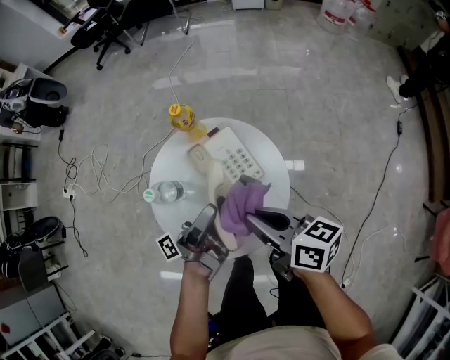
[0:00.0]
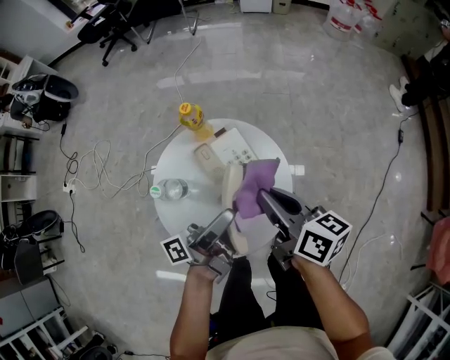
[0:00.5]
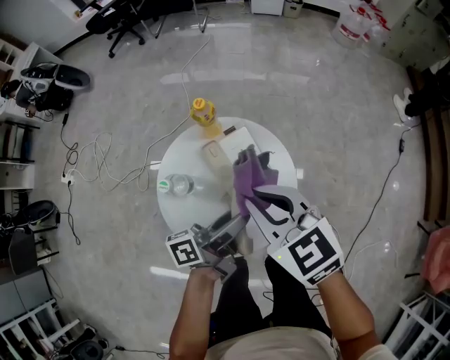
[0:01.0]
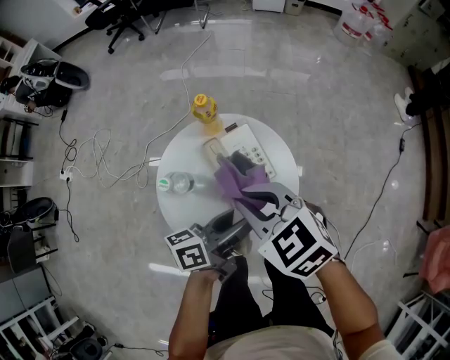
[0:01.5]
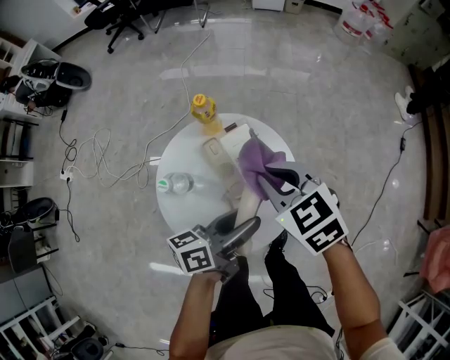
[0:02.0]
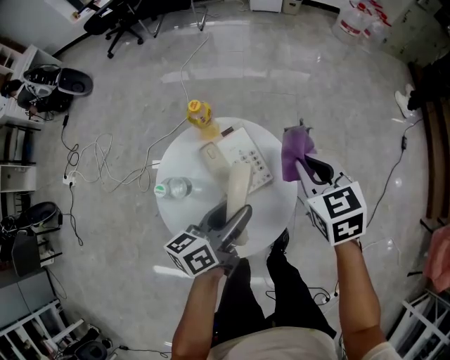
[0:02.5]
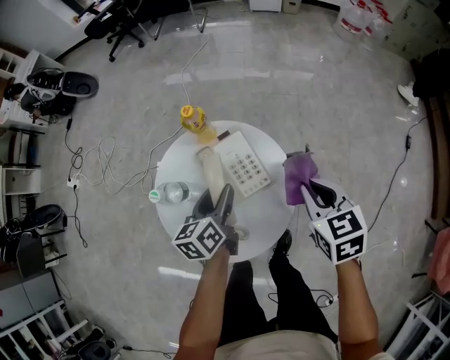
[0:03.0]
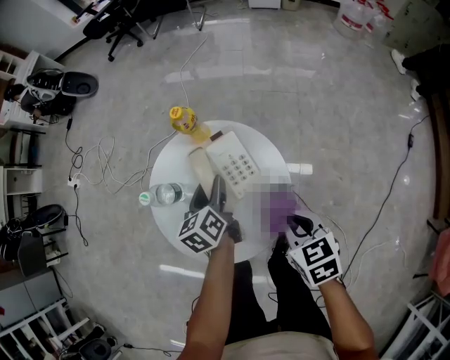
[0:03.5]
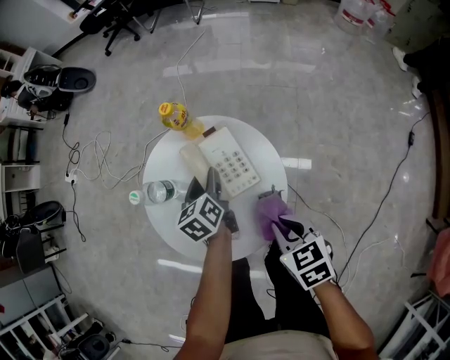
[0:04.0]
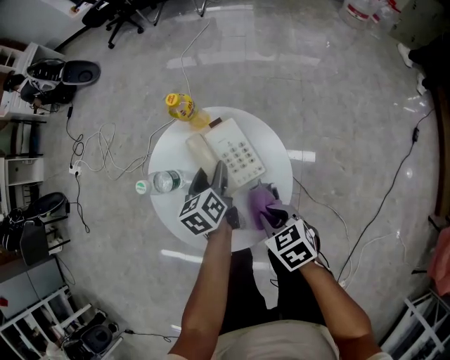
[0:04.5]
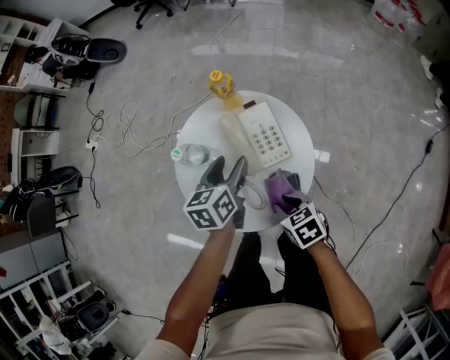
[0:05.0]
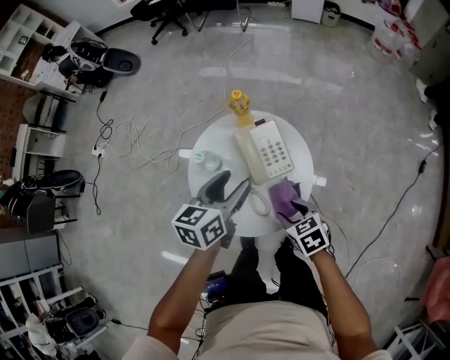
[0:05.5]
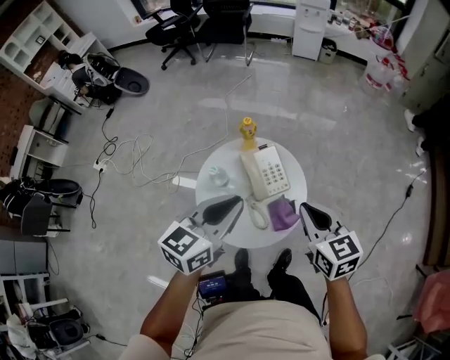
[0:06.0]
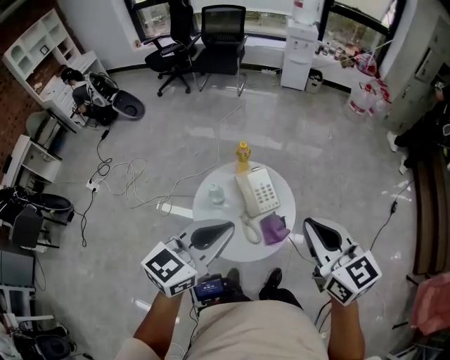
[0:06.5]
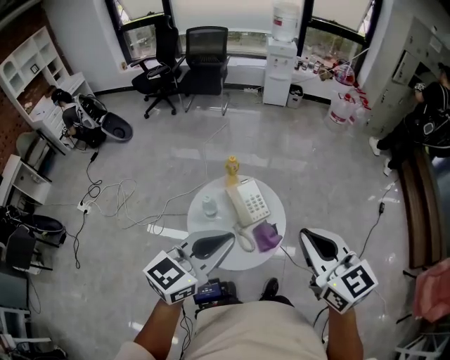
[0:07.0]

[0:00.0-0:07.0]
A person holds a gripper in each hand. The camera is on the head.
0.0 to 2.0 s: The left gripper ends up roughly 5 cm from where it was, and tips its fingers downward by some 30 degrees; the right gripper shifts approximately 10 cm forward, goes to the left and returns, about 5 cm each way, and rotates around the line of its fingers by about 50 degrees, counterclockwise from behind.
2.0 to 3.5 s: The right gripper changes place by roughly 15 cm, while the left gripper changes place by approximately 15 cm, and changes its angle by some 50 degrees.
3.5 to 5.0 s: The left gripper changes place by roughly 5 cm. Meanwhile the right gripper travels to the left and downward by about 10 cm.
5.0 to 7.0 s: The two grippers go approximately 40 cm upward. The right gripper tilts its fingers about 40 degrees upward, and opens and closes again. Meanwhile the left gripper changes its angle by about 50 degrees, and closes.

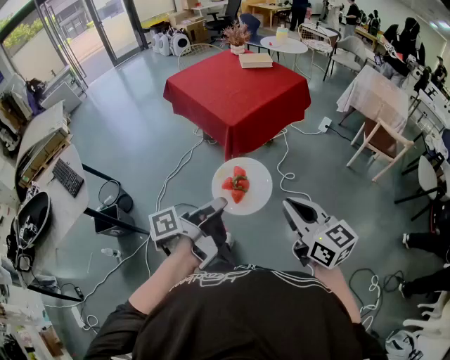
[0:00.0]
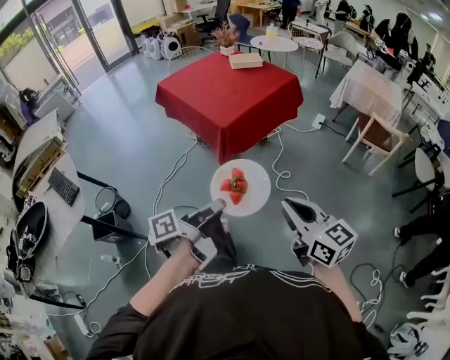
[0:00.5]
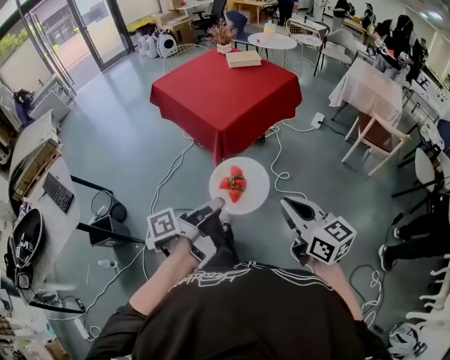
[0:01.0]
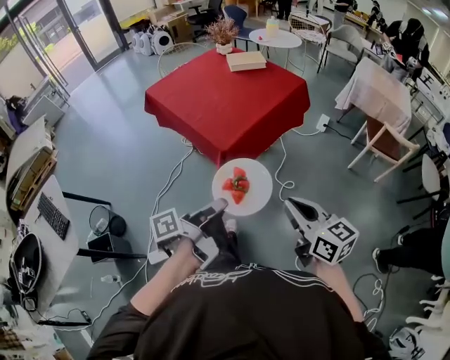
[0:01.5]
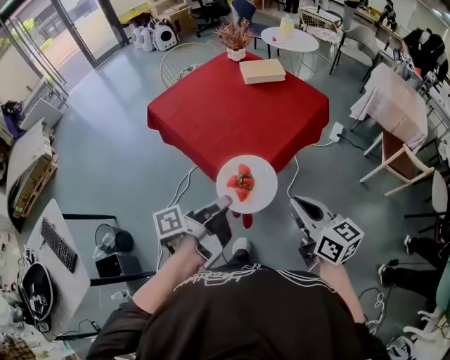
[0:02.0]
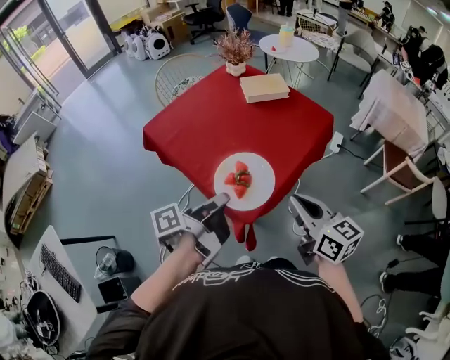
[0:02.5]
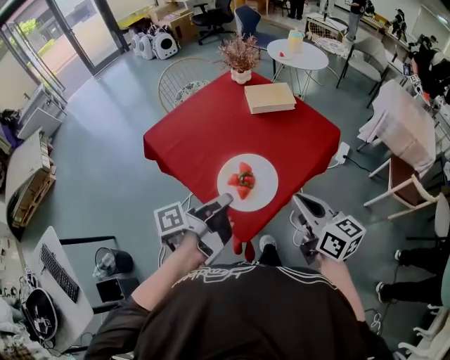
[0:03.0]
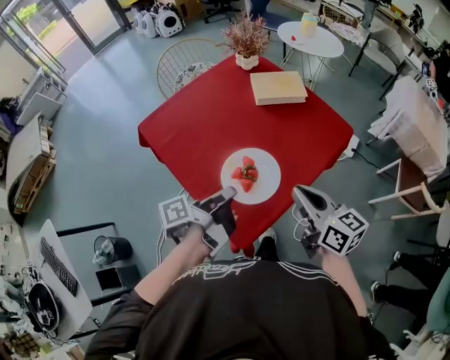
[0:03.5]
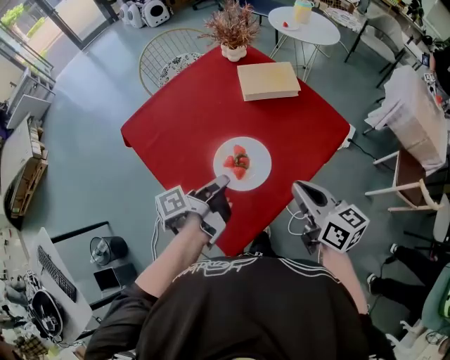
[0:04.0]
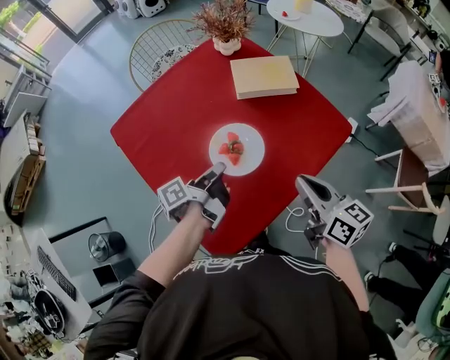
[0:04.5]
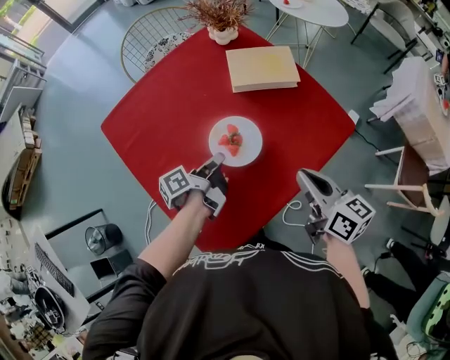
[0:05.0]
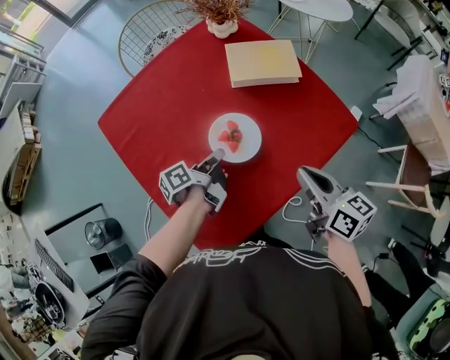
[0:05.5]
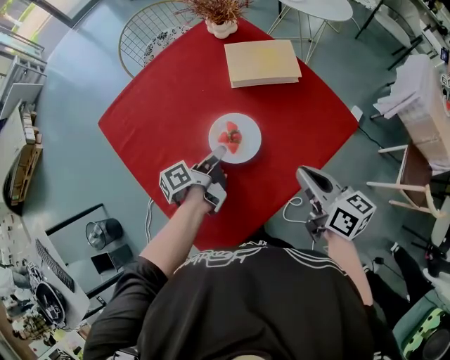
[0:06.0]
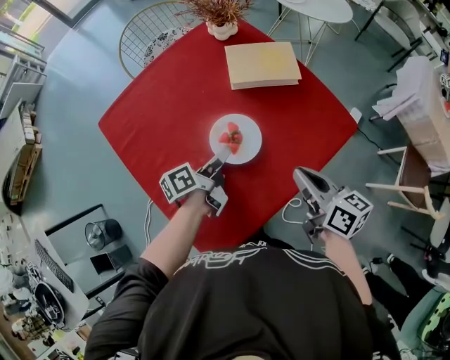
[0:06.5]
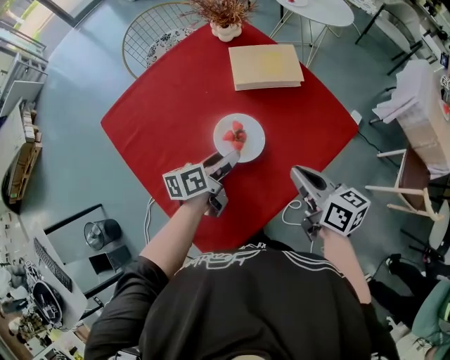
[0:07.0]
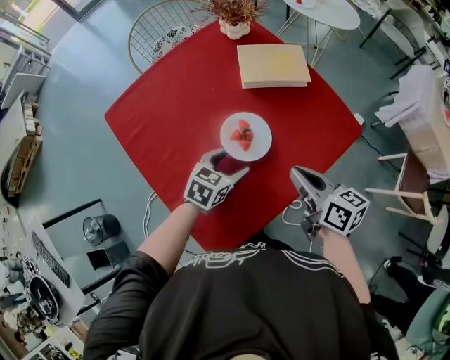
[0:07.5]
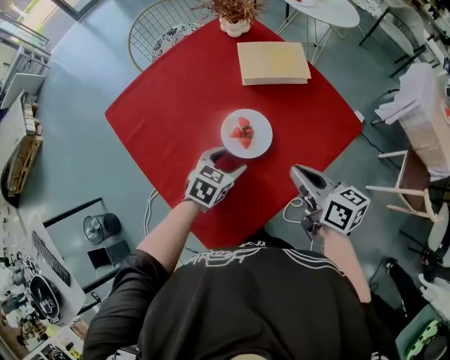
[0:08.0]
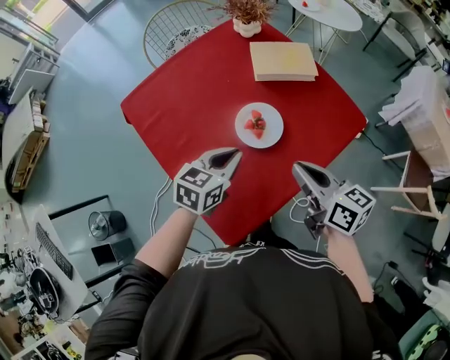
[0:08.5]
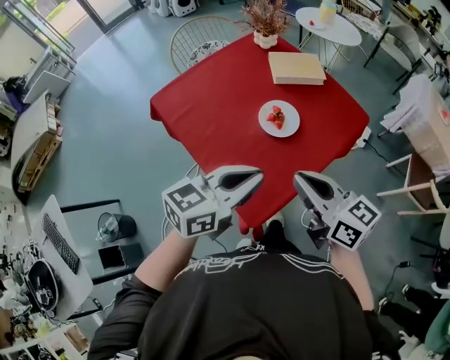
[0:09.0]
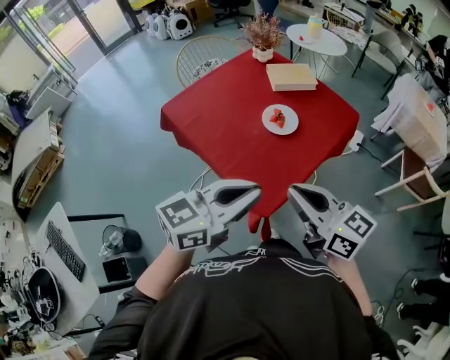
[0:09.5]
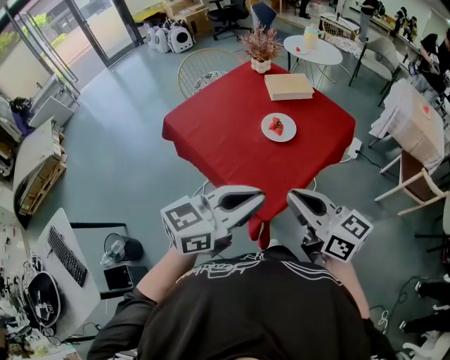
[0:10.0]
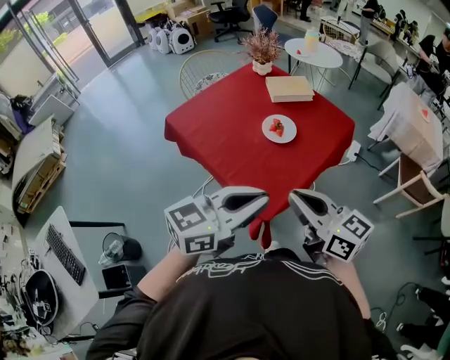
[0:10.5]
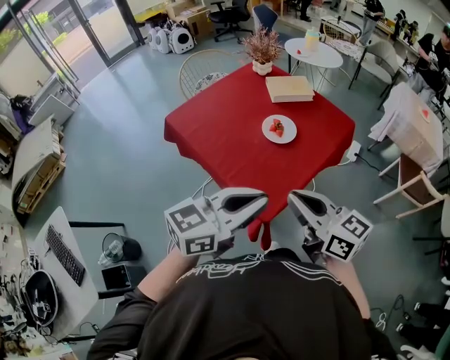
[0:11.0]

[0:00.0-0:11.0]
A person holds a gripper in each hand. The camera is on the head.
0.0 to 2.0 s: The grippers both shift forward by approximately 40 cm.
2.0 to 3.5 s: The grippers both shift forward by about 25 cm.
3.5 to 5.5 s: The left gripper shifts some 25 cm forward and downward; the right gripper goes roughly 20 cm forward, to the right and downward.
5.5 to 7.5 s: The left gripper rolls clockwise, seen from behind, by approximately 80 degrees, and opens its fingers.
7.5 to 9.0 s: The right gripper travels backward, upward and to the left by some 25 cm, and changes its angle by some 20 degrees, while the left gripper travels upward and backward by about 30 cm, points its fingers approximately 30 degrees further upward, and closes its fingers.
9.0 to 11.0 s: Both grippers move backward, about 15 cm.

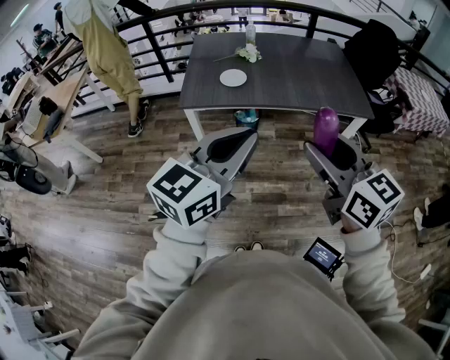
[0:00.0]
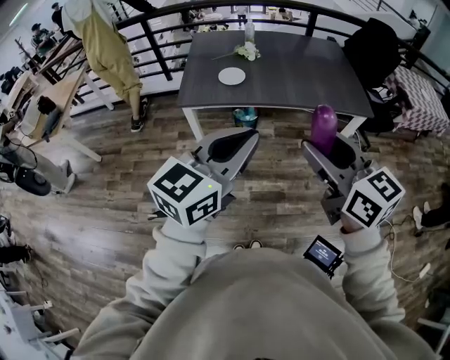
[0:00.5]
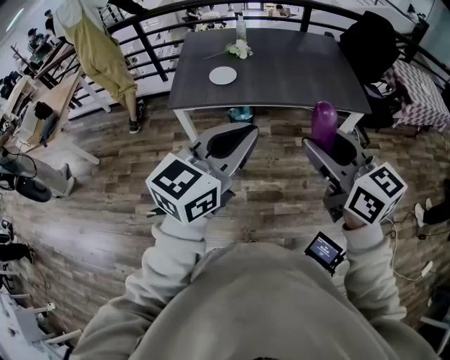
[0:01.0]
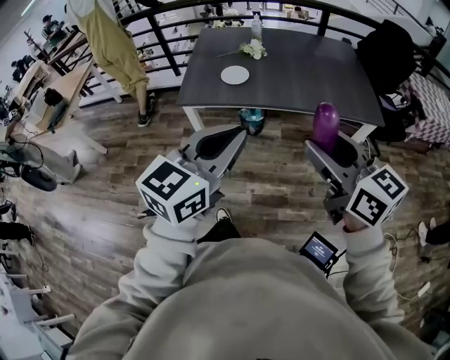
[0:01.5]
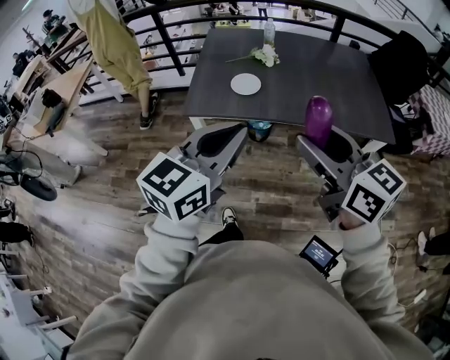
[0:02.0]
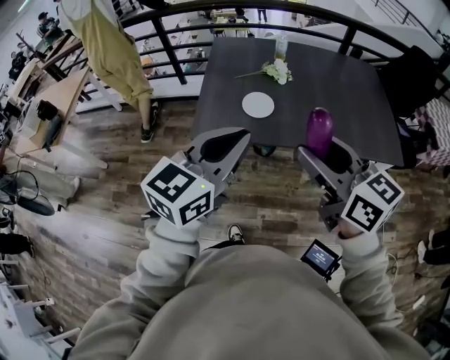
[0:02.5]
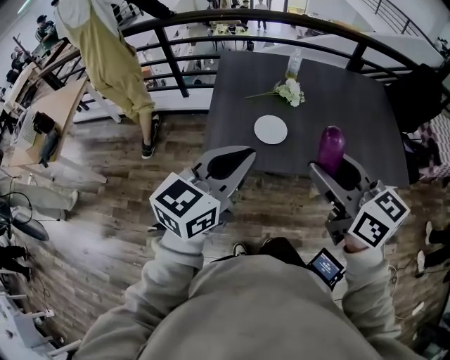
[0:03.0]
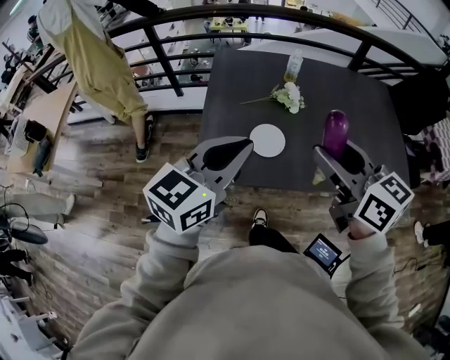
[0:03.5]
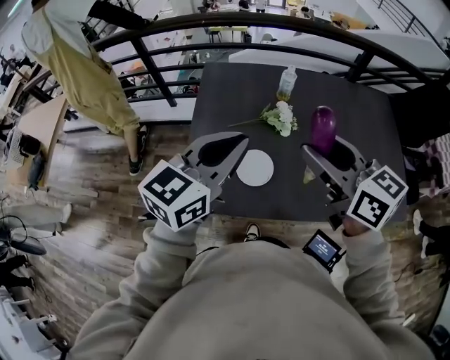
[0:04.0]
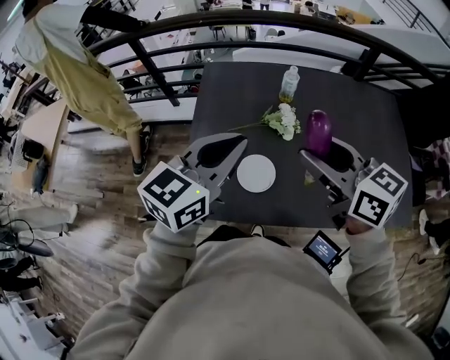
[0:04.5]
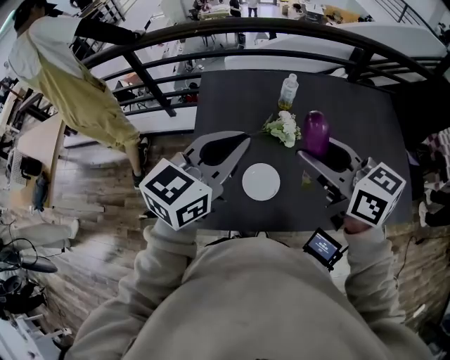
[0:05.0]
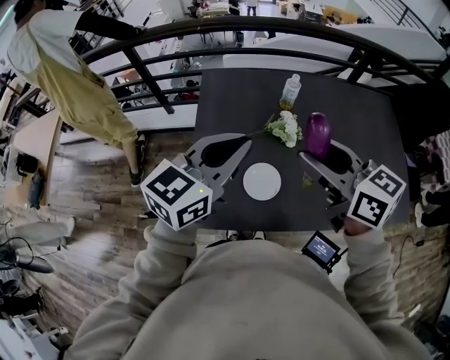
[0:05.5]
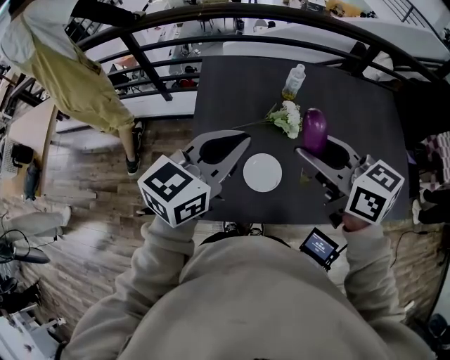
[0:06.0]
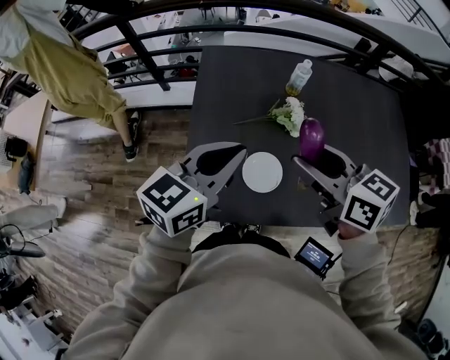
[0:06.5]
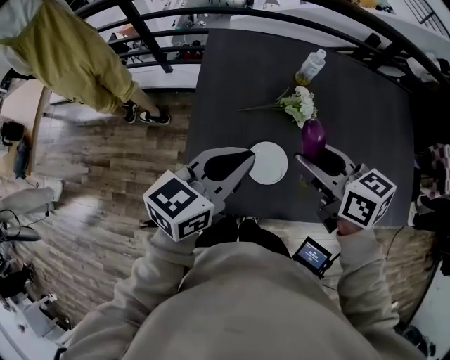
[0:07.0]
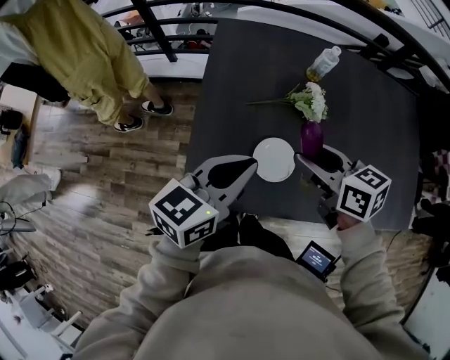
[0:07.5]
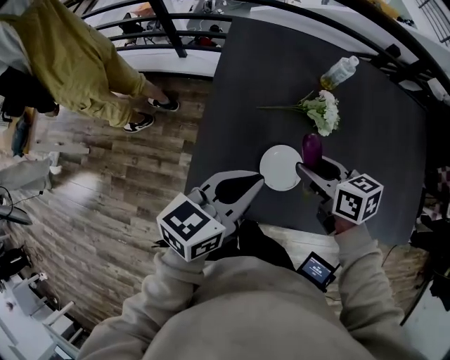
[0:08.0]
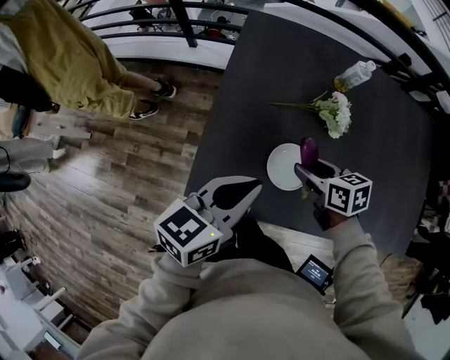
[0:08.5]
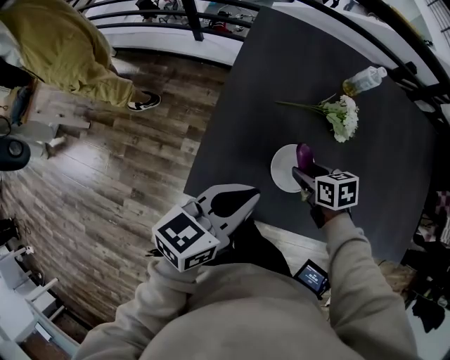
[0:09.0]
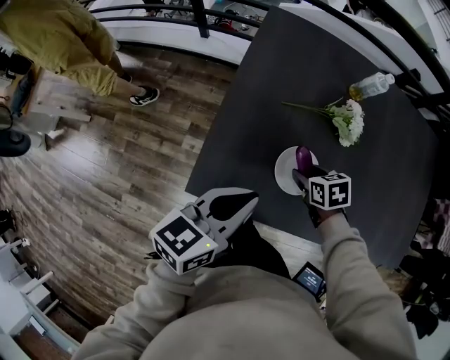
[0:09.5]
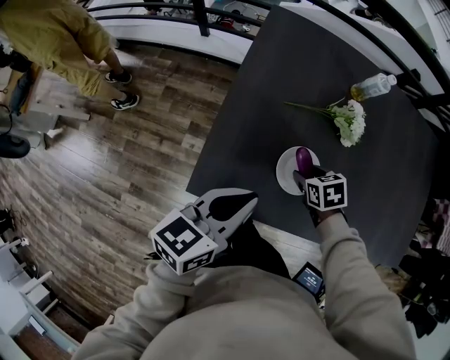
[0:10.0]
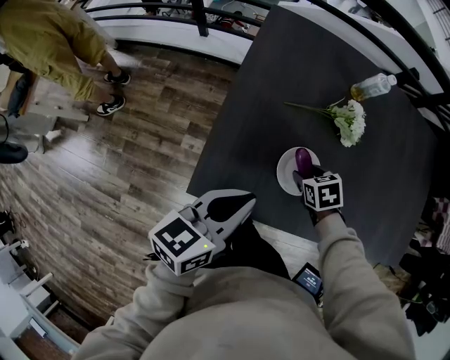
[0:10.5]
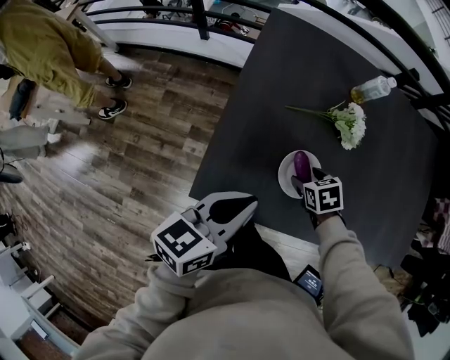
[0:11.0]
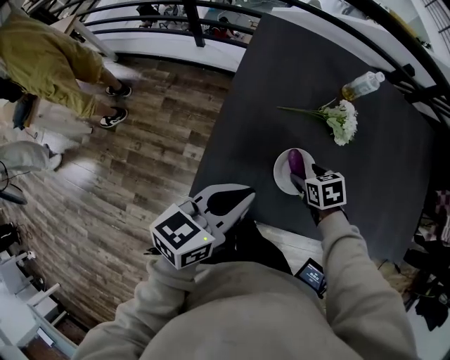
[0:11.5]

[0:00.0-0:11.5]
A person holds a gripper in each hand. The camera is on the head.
0.0 to 2.0 s: Both grippers move forward, approximately 15 cm.
2.0 to 4.0 s: The two grippers travel together, forward, some 40 cm.
4.0 to 6.0 s: The left gripper moves forward, some 5 cm. The right gripper changes place by some 5 cm.
6.0 to 7.5 s: The two grippers go about 15 cm downward.
7.5 to 9.5 s: The right gripper shifts roughly 25 cm downward, and points its fingers about 30 degrees further downward; the left gripper moves downward, about 5 cm.
9.5 to 11.5 s: There are only small adjustments of the grippers.
